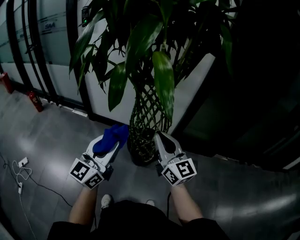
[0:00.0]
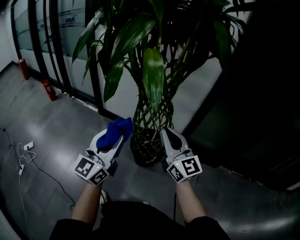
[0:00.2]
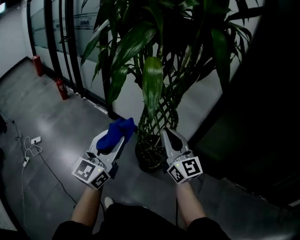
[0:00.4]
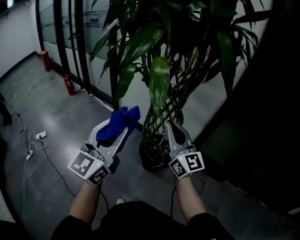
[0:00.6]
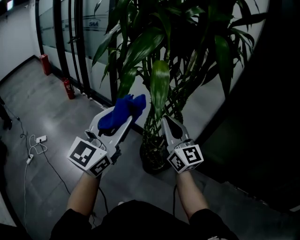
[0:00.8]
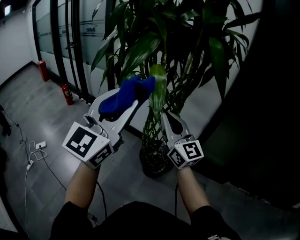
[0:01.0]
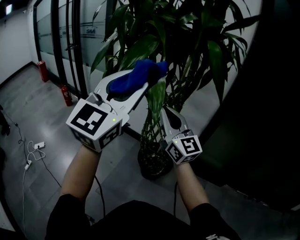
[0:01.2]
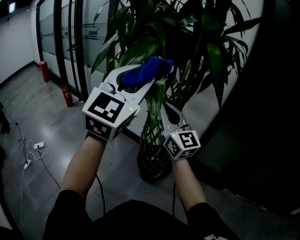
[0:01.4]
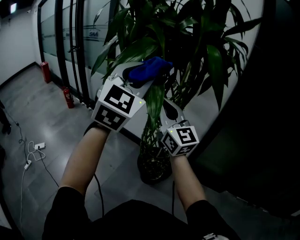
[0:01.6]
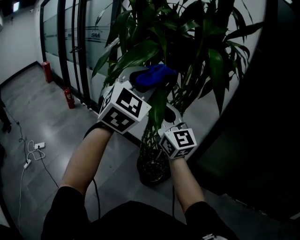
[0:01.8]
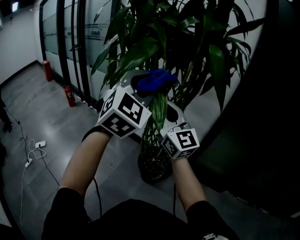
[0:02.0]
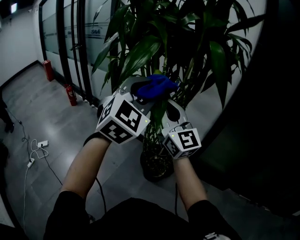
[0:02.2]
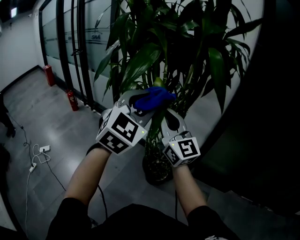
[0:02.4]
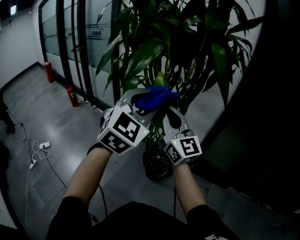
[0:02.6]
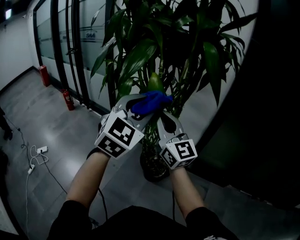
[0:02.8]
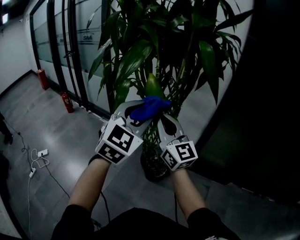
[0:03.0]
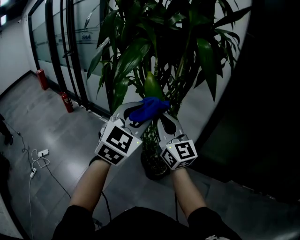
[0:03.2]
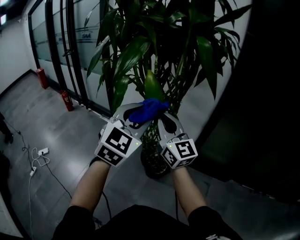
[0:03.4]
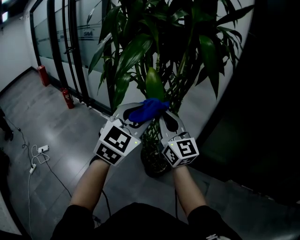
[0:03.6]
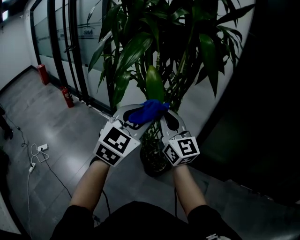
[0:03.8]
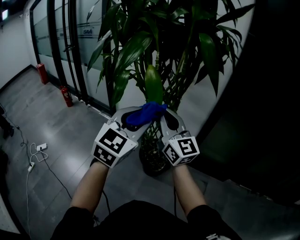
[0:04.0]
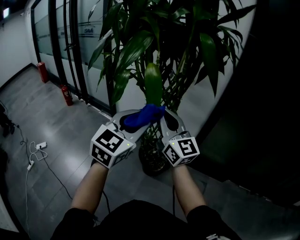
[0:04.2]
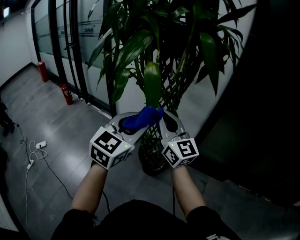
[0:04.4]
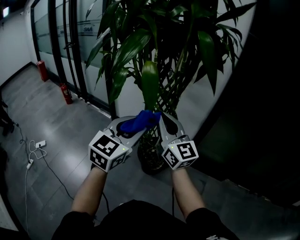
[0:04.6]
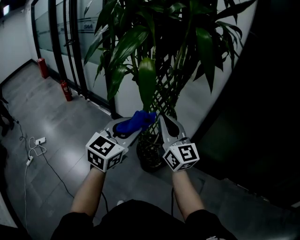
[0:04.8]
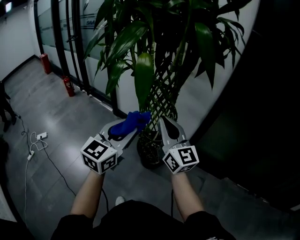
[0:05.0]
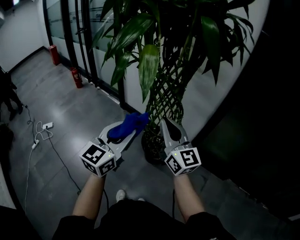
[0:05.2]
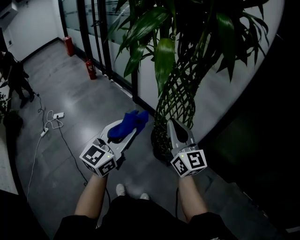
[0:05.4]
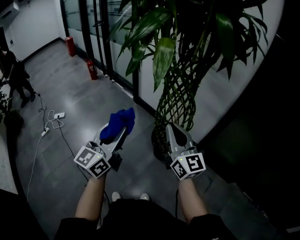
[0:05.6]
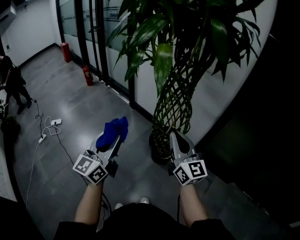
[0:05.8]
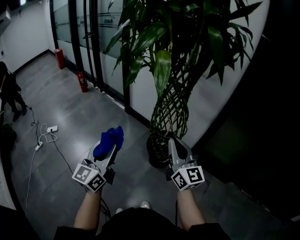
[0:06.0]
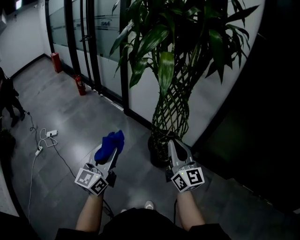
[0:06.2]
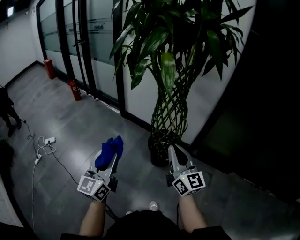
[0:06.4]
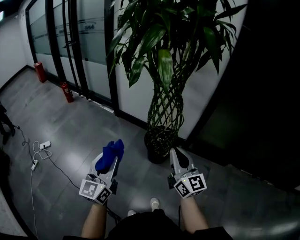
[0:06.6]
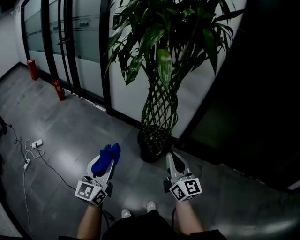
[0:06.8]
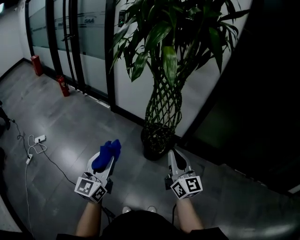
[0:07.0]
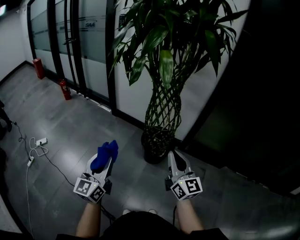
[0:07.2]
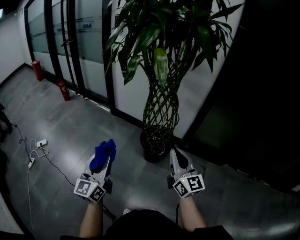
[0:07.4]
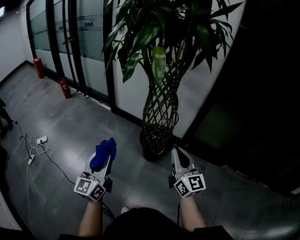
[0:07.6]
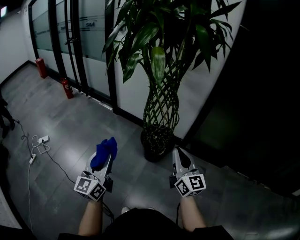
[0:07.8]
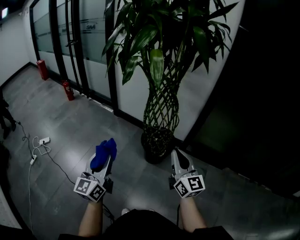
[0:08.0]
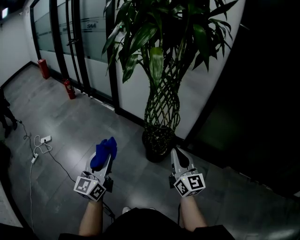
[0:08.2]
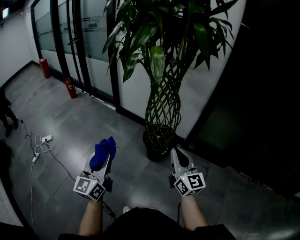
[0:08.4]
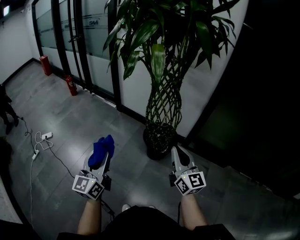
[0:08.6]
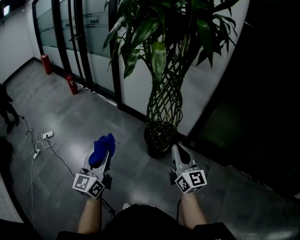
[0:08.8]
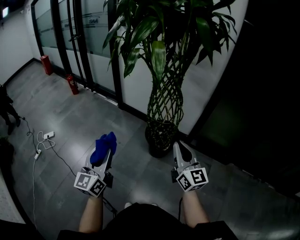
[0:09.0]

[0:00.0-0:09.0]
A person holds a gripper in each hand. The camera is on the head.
0:00.0 to 0:01.6: The right gripper is displaced upward by roughly 15 cm, and turns by roughly 20 degrees. The left gripper moves upward, roughly 25 cm, and twists about 50 degrees clockwise, seen from behind.
0:01.6 to 0:03.0: The left gripper goes roughly 10 cm downward. Meanwhile the right gripper moves about 5 cm.
0:03.0 to 0:04.4: The left gripper moves downward, about 5 cm, and rotates roughly 20 degrees.
0:04.4 to 0:06.0: The left gripper heads to the left, backward and downward, covering approximately 20 cm, and changes its angle by approximately 40 degrees, while the right gripper travels backward and downward by about 15 cm.
0:06.0 to 0:07.6: The left gripper is displaced backward and to the left by some 10 cm. Meanwhile the right gripper is displaced backward by some 10 cm.
0:07.6 to 0:09.0: The grippers move only a little.

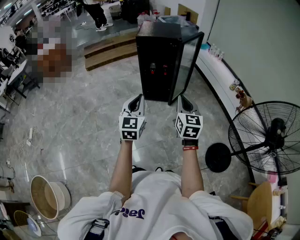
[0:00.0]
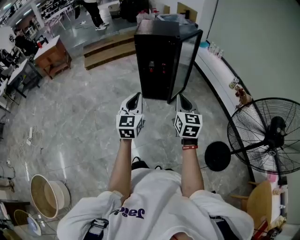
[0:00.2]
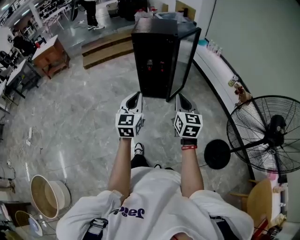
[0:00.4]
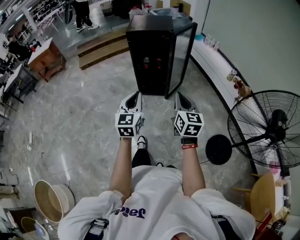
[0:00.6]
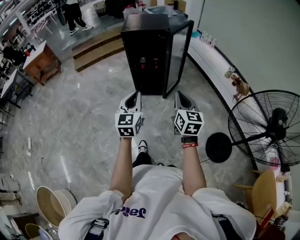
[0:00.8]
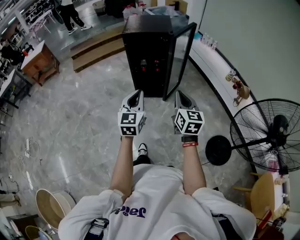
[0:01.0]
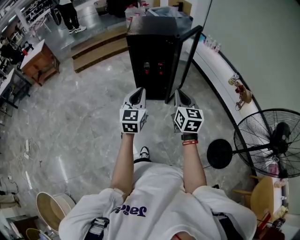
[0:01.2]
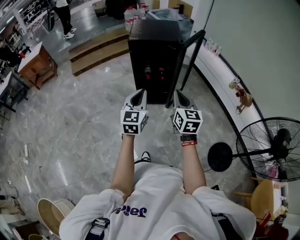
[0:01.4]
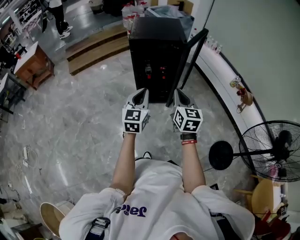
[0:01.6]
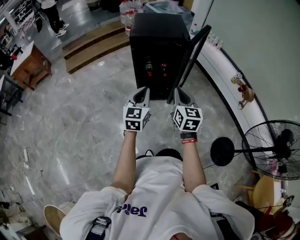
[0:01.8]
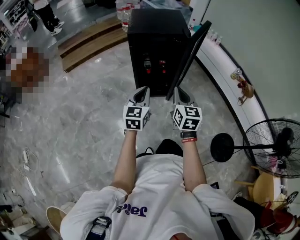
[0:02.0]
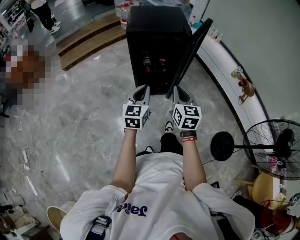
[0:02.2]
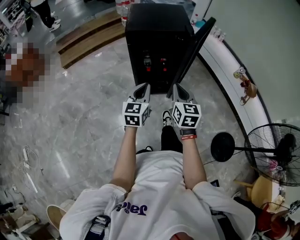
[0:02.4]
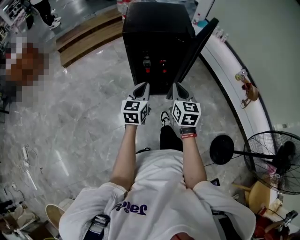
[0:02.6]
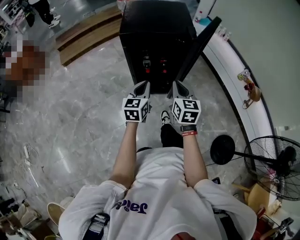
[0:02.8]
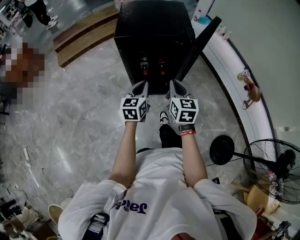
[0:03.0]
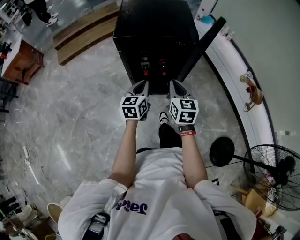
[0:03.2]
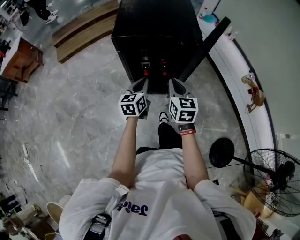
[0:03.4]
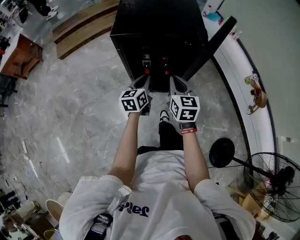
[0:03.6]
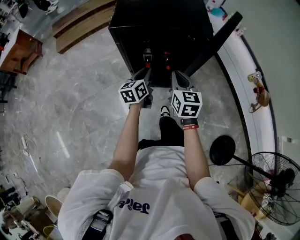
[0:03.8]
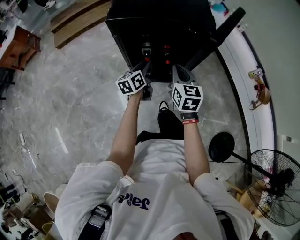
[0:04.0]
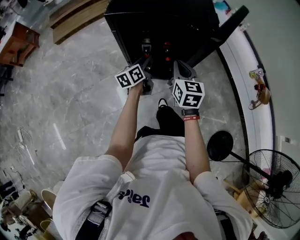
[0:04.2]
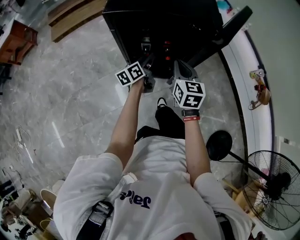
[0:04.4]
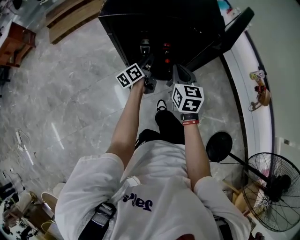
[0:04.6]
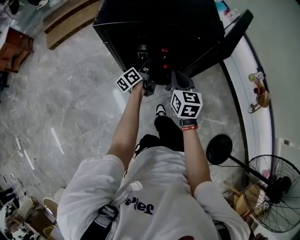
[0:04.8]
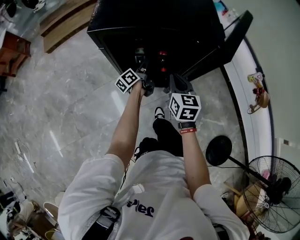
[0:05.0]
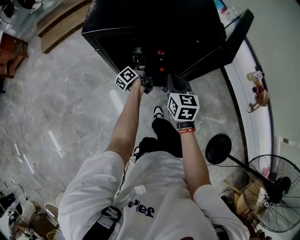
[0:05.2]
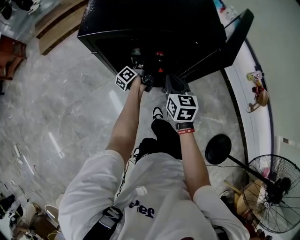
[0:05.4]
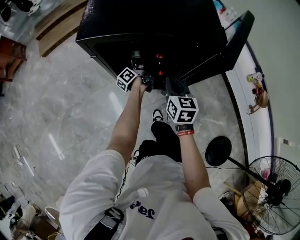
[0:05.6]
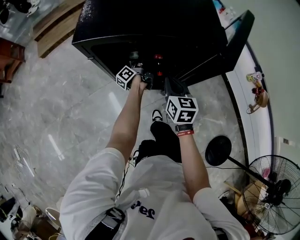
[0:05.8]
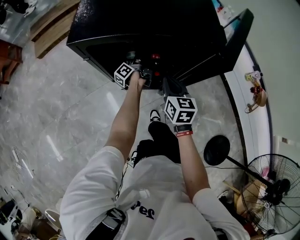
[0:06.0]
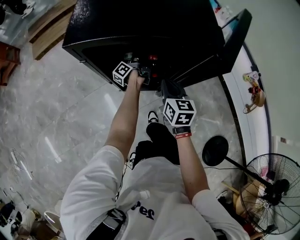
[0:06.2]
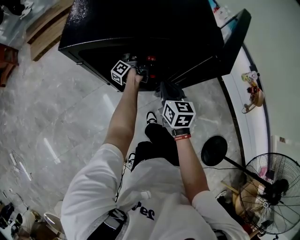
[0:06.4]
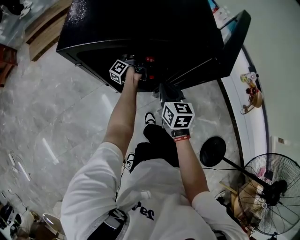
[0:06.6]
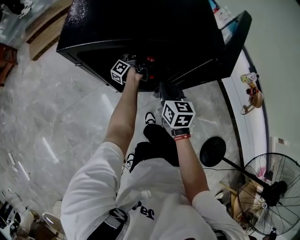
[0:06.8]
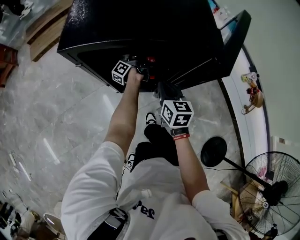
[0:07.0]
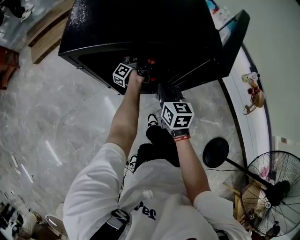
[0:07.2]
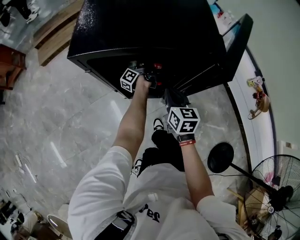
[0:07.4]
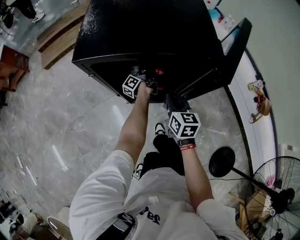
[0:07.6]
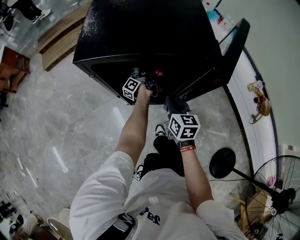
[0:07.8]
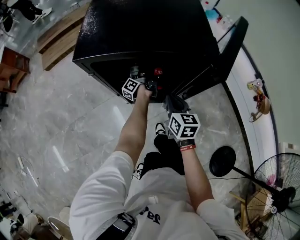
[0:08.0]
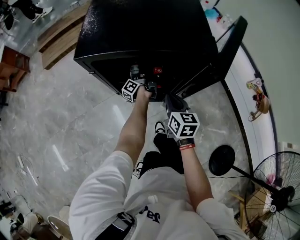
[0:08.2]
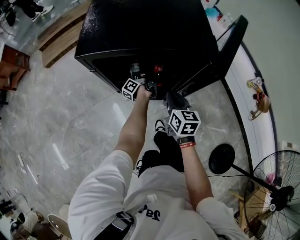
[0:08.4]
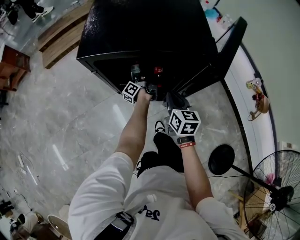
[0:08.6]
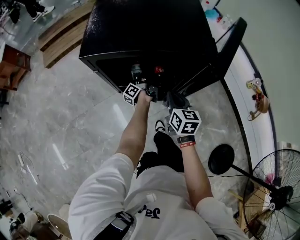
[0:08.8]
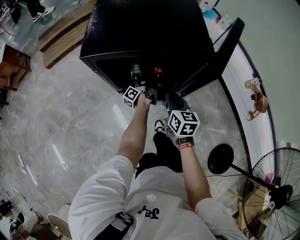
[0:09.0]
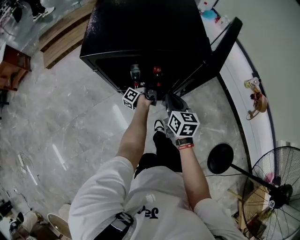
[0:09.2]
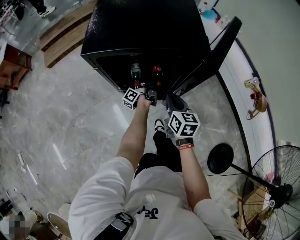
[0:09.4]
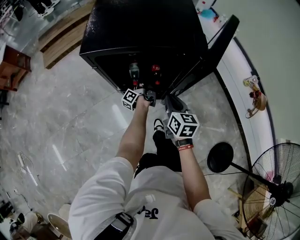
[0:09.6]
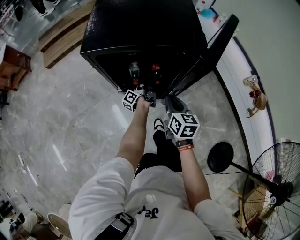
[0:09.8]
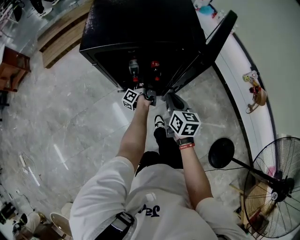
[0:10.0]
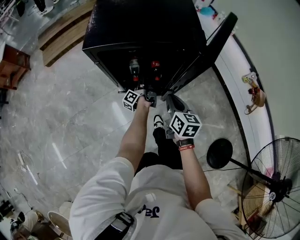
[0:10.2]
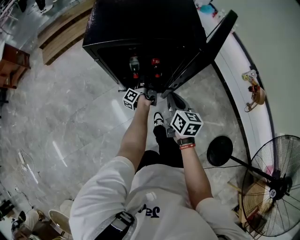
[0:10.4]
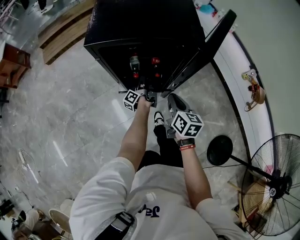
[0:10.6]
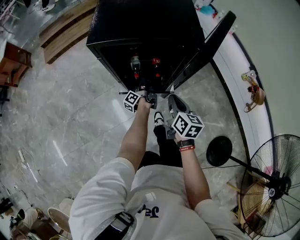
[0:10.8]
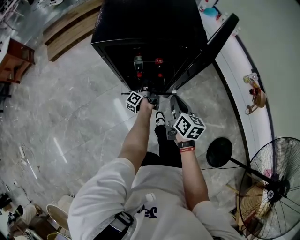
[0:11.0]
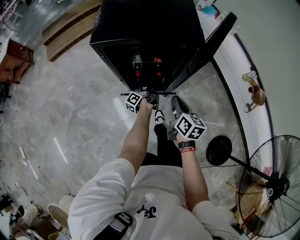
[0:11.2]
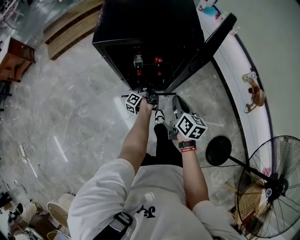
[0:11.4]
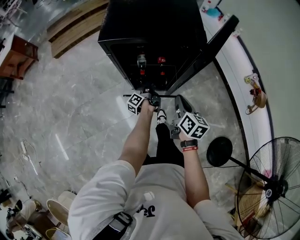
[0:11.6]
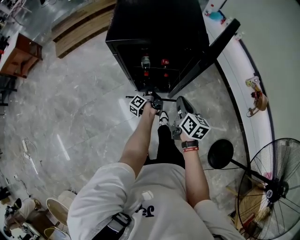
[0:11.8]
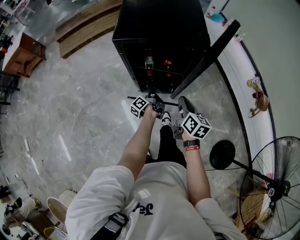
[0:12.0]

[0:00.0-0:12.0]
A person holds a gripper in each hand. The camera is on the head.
0:00.0 to 0:01.6: The left gripper heads forward, covering approximately 25 cm; the right gripper moves forward and to the left, some 25 cm.
0:01.6 to 0:03.0: Both grippers move forward and downward, about 25 cm.
0:03.0 to 0:04.4: The left gripper goes roughly 25 cm downward and forward, rotates approximately 40 degrees, and opens, while the right gripper heads forward and downward, covering roughly 20 cm.
0:04.4 to 0:06.0: The right gripper heads downward and forward, covering approximately 10 cm. Meanwhile the left gripper heads forward and downward, covering about 20 cm, and swivels about 40 degrees.
0:06.0 to 0:07.6: The left gripper closes.
0:07.6 to 0:09.0: The left gripper is displaced backward by about 10 cm.
0:09.0 to 0:10.4: The two grippers go roughly 5 cm backward.
0:10.4 to 0:12.0: The right gripper moves backward and upward, approximately 10 cm. Meanwhile the left gripper is displaced backward and upward by some 15 cm.

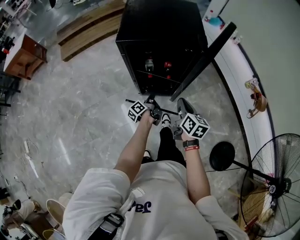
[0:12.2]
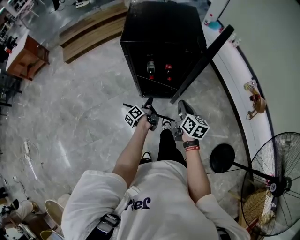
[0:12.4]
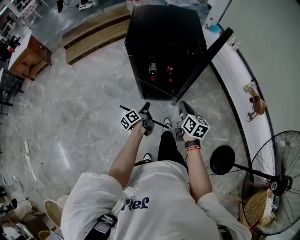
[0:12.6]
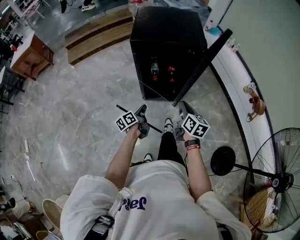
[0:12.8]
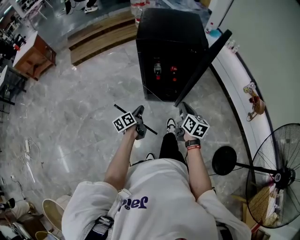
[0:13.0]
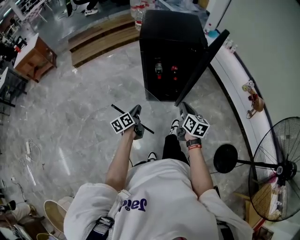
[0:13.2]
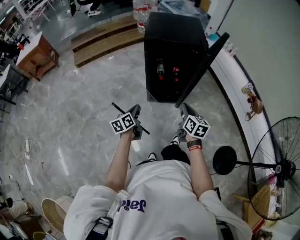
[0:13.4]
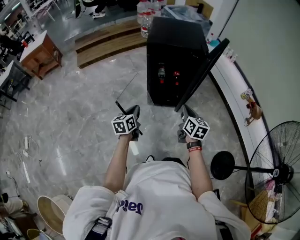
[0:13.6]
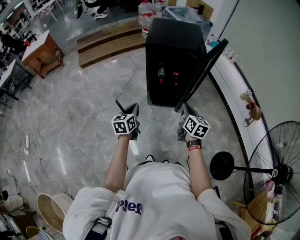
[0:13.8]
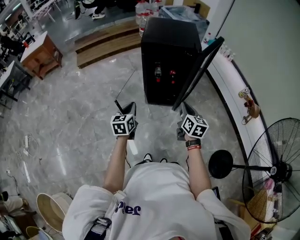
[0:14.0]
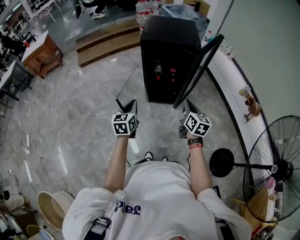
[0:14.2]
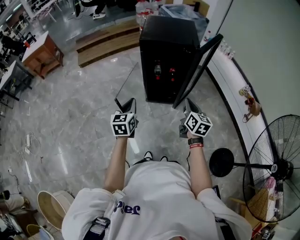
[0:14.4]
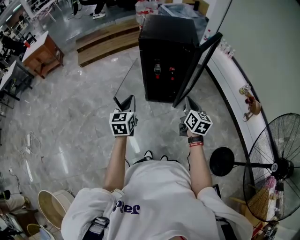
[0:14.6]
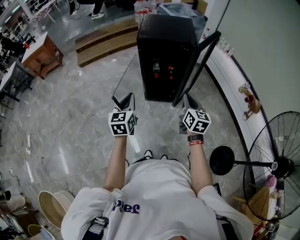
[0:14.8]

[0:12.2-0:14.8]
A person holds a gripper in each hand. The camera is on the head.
0:12.2 to 0:13.4: The left gripper shifts approximately 30 cm backward, to the left and upward, and rolls clockwise, seen from behind, by approximately 40 degrees. The right gripper shifts approximately 20 cm backward, to the left and upward.
0:13.4 to 0:14.8: The left gripper is displaced upward by about 15 cm, and rotates about 40 degrees. The right gripper is displaced upward and to the right by some 10 cm.
